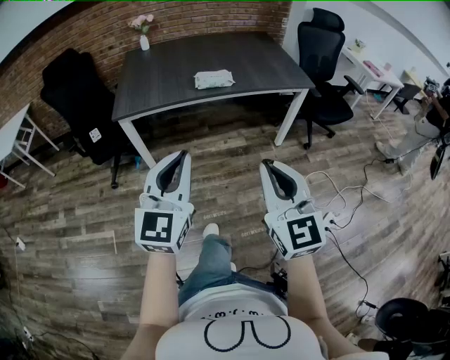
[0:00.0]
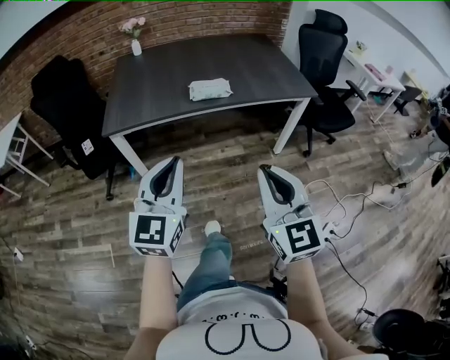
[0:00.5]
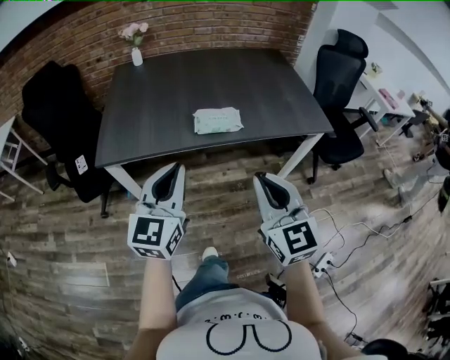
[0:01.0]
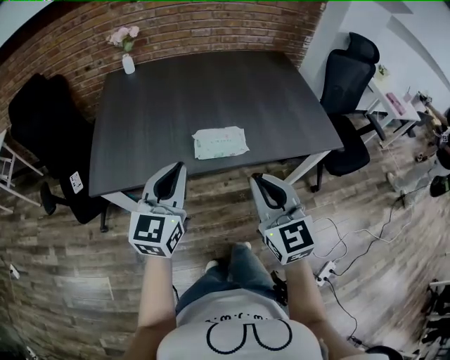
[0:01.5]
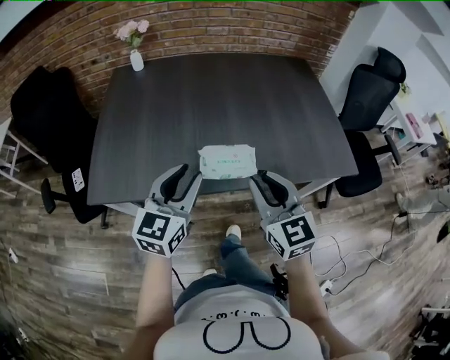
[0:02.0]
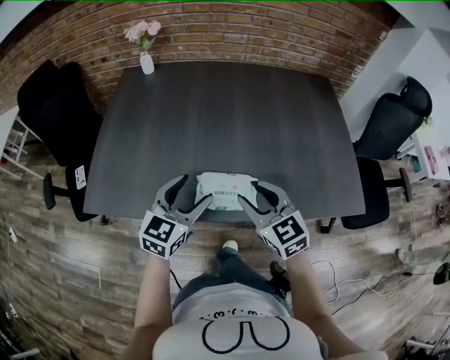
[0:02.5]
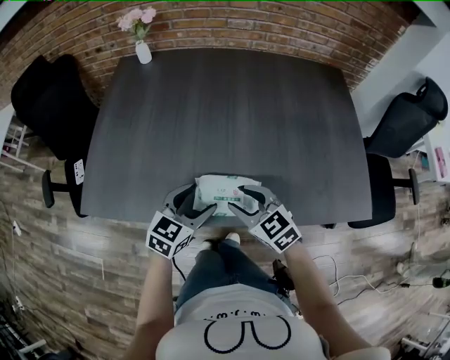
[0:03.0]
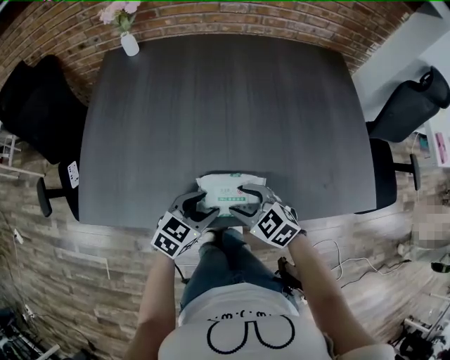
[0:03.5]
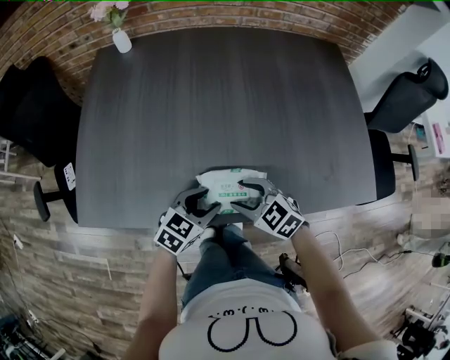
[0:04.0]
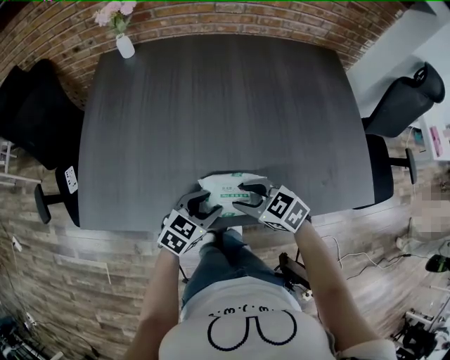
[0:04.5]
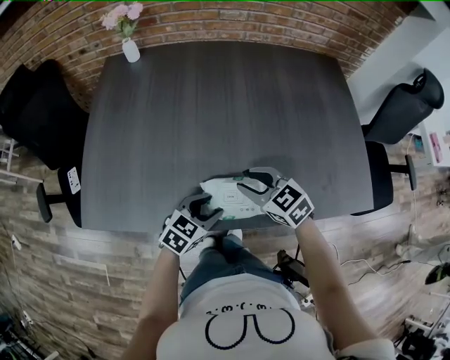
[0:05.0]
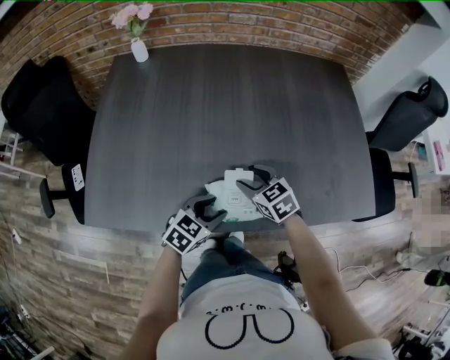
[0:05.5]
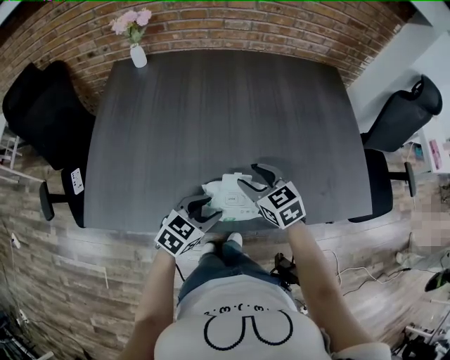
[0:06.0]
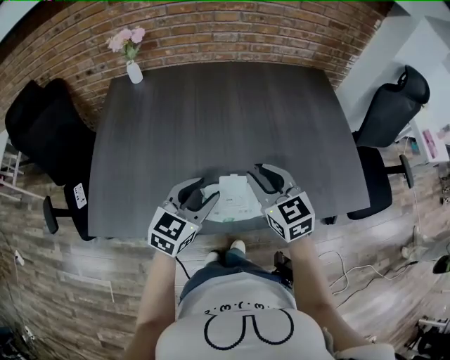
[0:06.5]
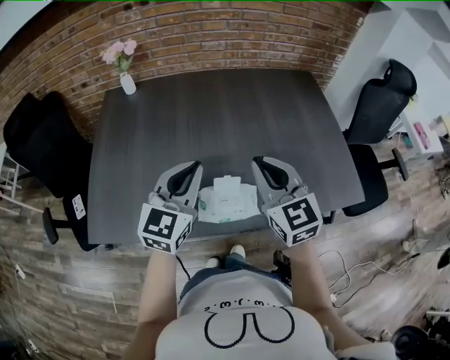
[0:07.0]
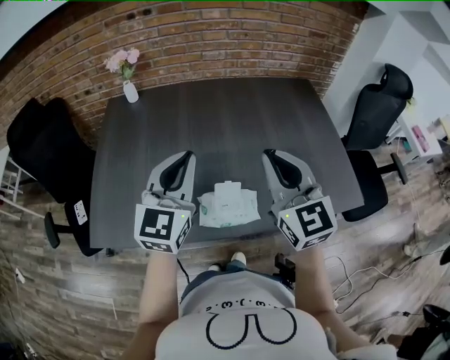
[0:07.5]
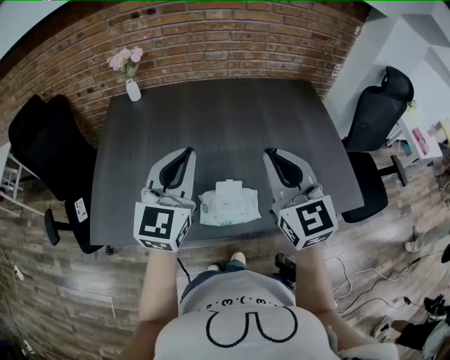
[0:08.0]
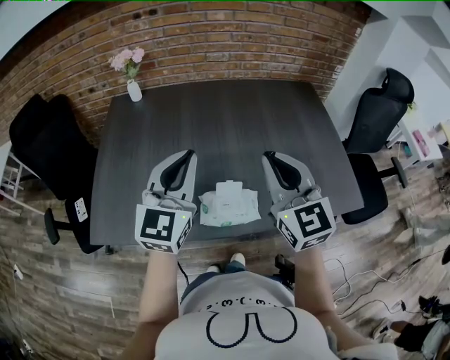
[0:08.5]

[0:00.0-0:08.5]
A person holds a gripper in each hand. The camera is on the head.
0:00.0 to 0:02.0: Both grippers are carried forward, some 60 cm. The left gripper opens.
0:02.0 to 0:04.0: Both grippers travel together downward and forward, approximately 25 cm. The right gripper angles its fingers downward, by approximately 30 degrees, and opens its fingers; the left gripper turns by roughly 40 degrees, and opens, then closes once more.
0:04.0 to 0:06.5: The left gripper goes some 15 cm upward, and changes its angle by some 20 degrees. The right gripper moves up and down over about 15 cm, changing direction 2 times, rotates approximately 40 degrees, and closes up.
0:06.5 to 0:08.5: Both grippers travel together upward, approximately 15 cm. The right gripper turns by some 20 degrees, and closes; the left gripper swivels roughly 30 degrees, and closes up.

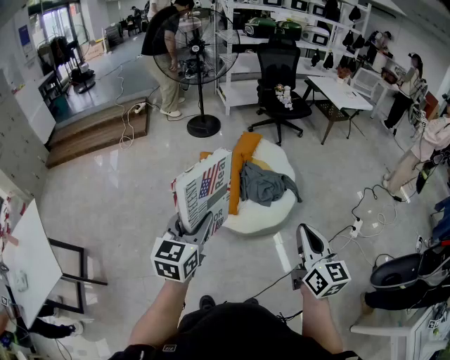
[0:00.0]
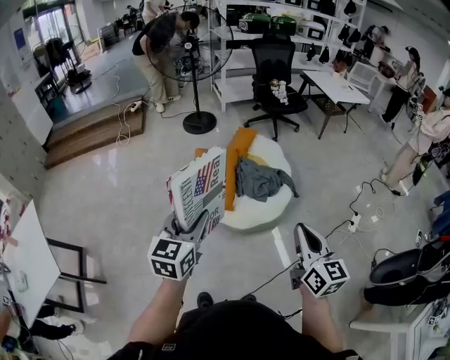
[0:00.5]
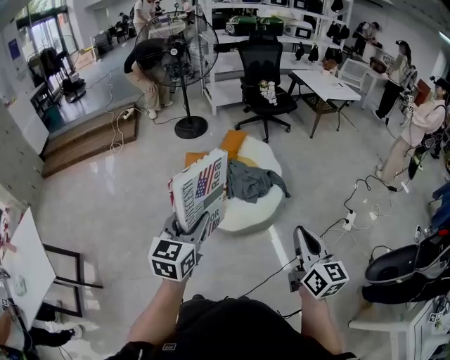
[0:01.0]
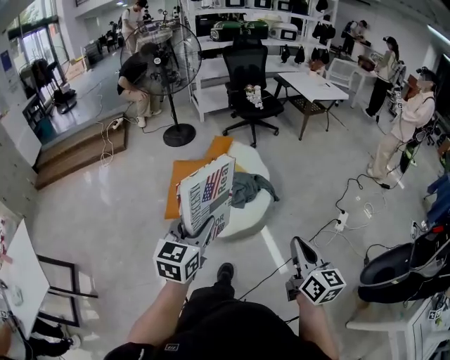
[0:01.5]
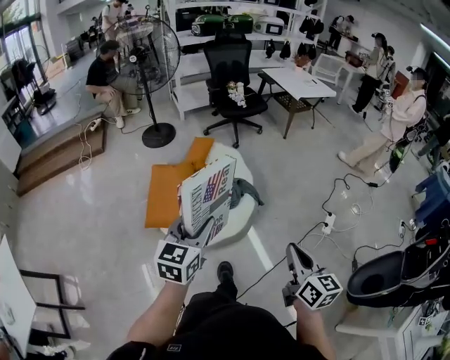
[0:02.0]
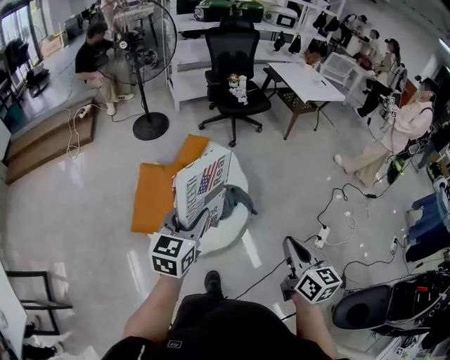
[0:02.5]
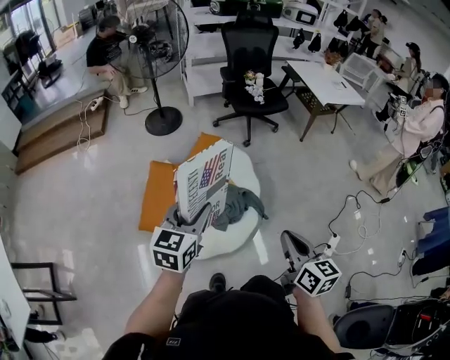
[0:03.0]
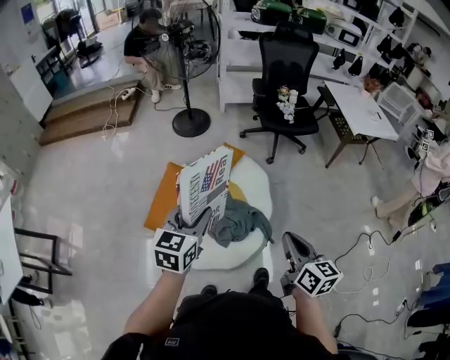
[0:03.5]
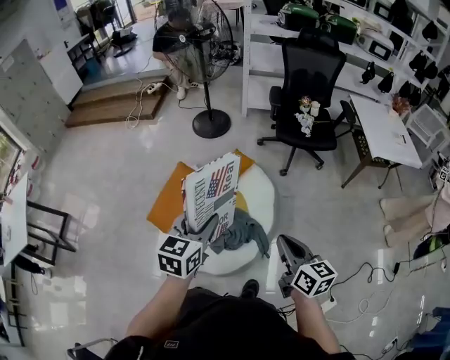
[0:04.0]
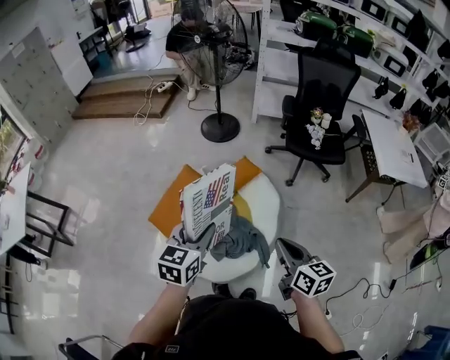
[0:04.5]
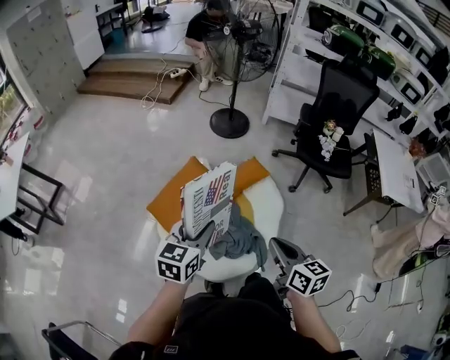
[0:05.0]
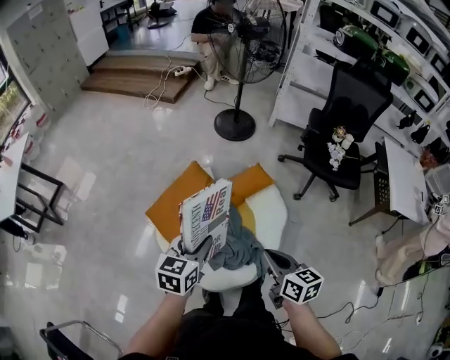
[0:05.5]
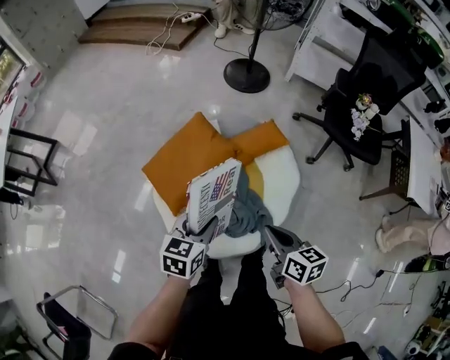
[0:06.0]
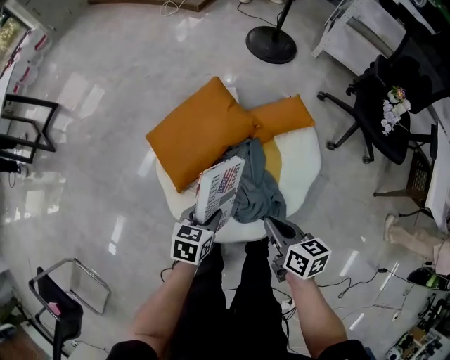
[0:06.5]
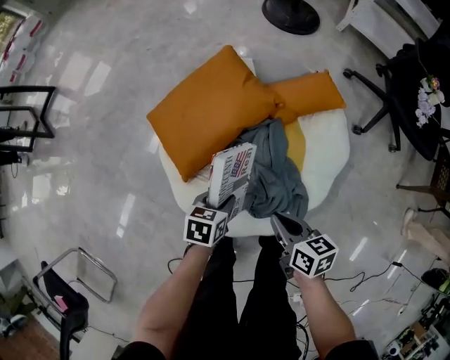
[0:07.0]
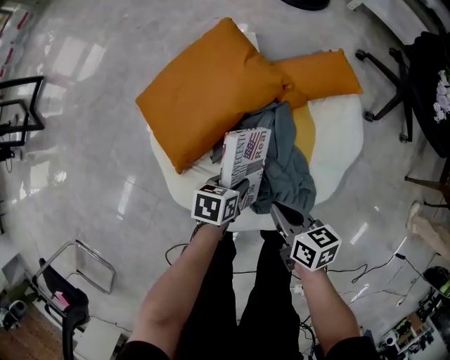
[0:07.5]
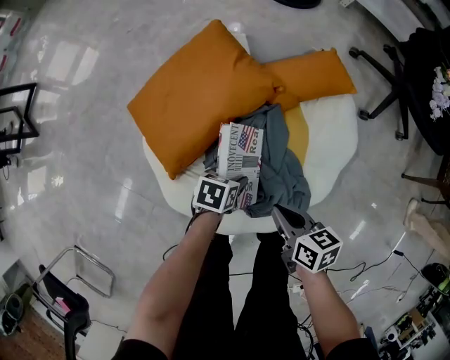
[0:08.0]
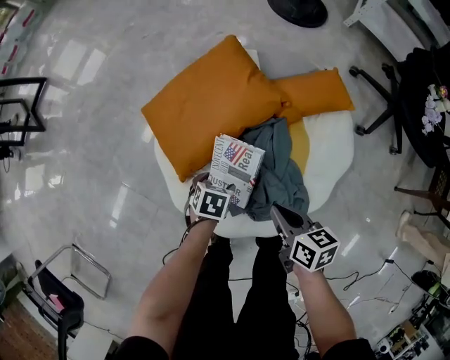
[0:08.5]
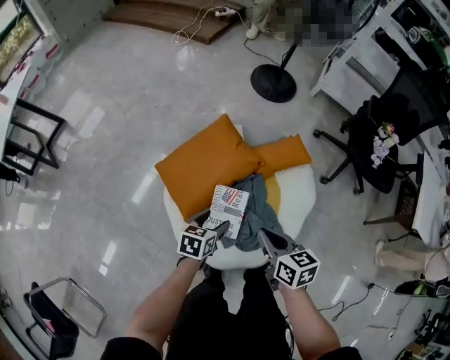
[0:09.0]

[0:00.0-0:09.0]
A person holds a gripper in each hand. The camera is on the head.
0:00.0 to 0:02.0: The left gripper travels to the right and forward by approximately 30 cm. The right gripper goes some 20 cm to the right.
0:02.0 to 0:04.5: Both grippers are carried some 50 cm. The left gripper changes its angle by approximately 40 degrees. The right gripper rotates some 50 degrees.
0:04.5 to 0:07.0: The grippers both shift downward by about 50 cm. The right gripper changes its angle by about 40 degrees. The left gripper tips its fingers downward by some 30 degrees.
0:07.0 to 0:09.0: Both grippers travel together upward, about 15 cm. The left gripper opens its fingers.

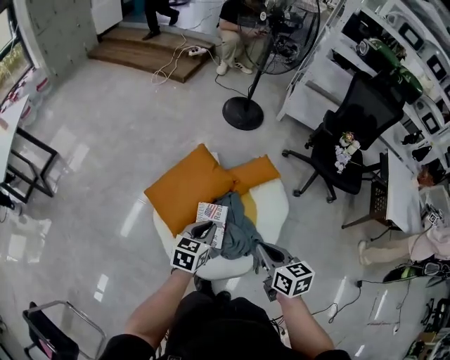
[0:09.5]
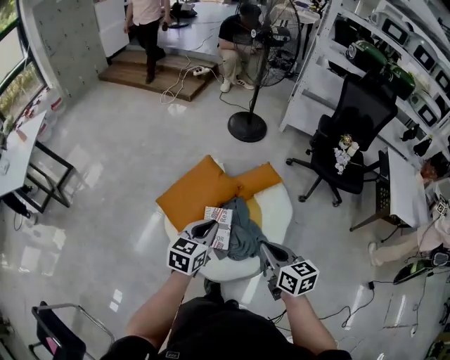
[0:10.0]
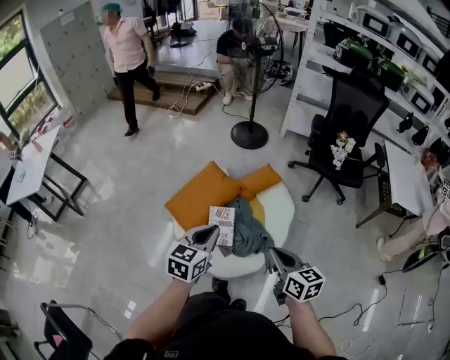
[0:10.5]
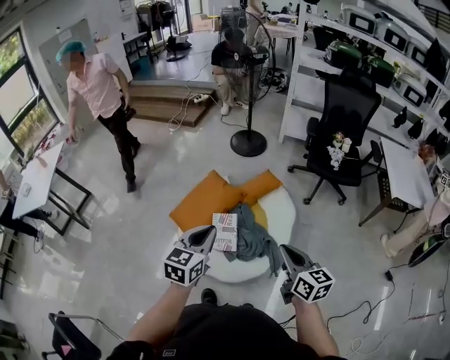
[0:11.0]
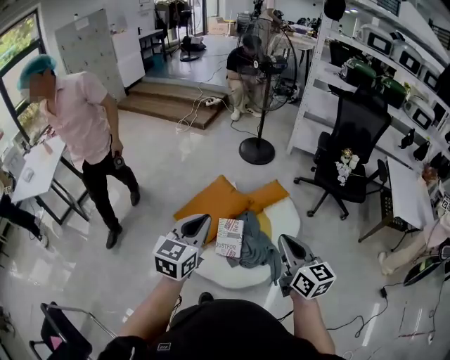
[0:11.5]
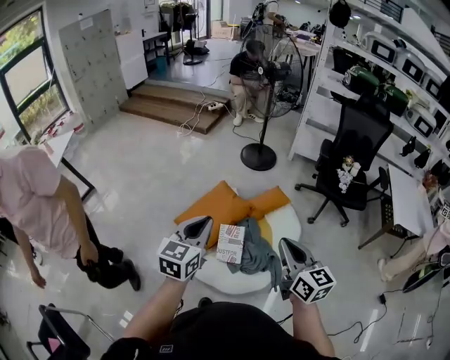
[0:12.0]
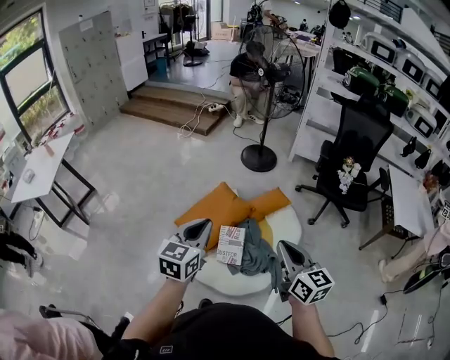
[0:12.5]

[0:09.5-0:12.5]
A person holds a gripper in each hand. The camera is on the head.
0:09.5 to 0:11.0: The left gripper goes approximately 30 cm upward and backward. The right gripper shifts about 25 cm backward, upward and to the right, and changes its angle by approximately 20 degrees.
0:11.0 to 0:12.5: The right gripper shifts roughly 15 cm to the left, upward and forward. Meanwhile the left gripper goes roughly 10 cm to the left.

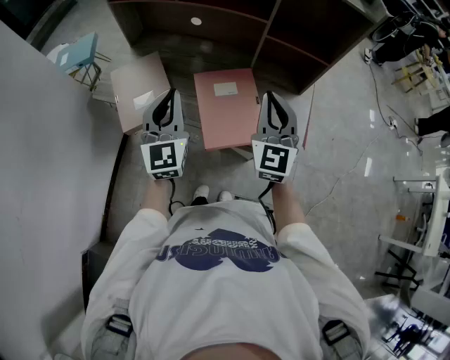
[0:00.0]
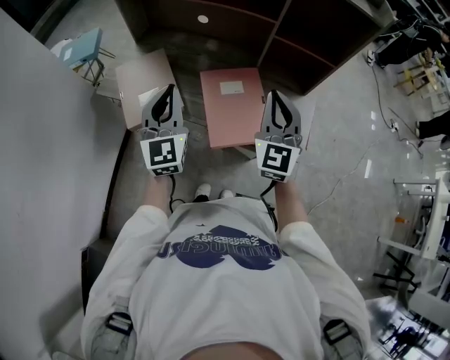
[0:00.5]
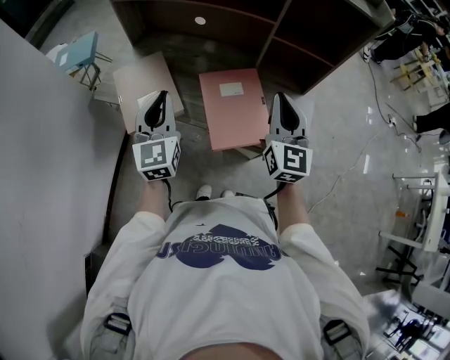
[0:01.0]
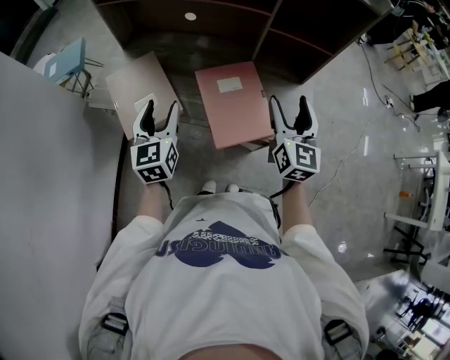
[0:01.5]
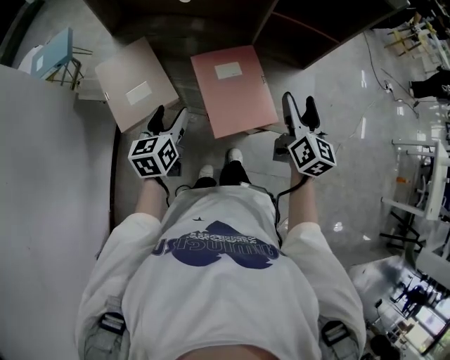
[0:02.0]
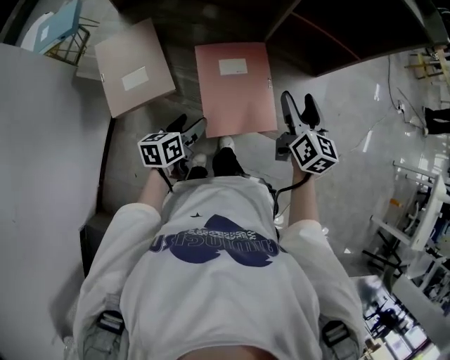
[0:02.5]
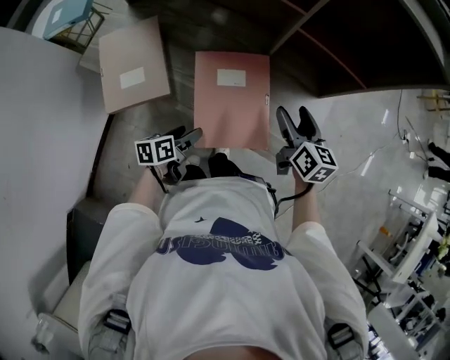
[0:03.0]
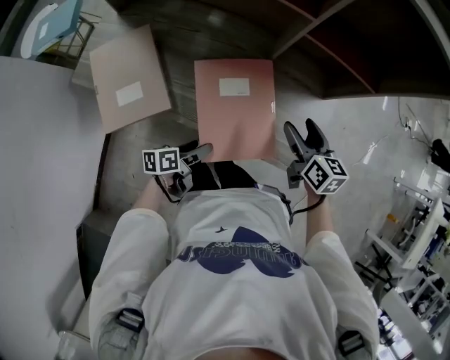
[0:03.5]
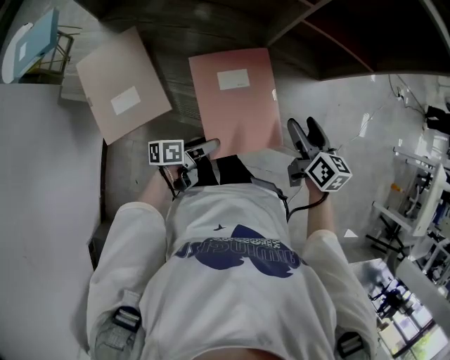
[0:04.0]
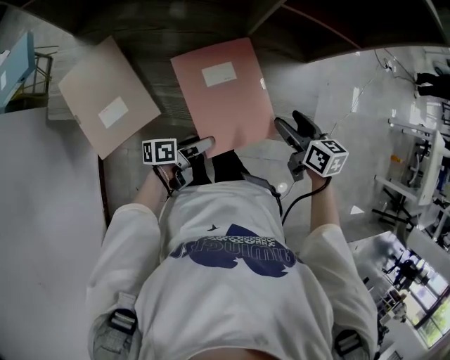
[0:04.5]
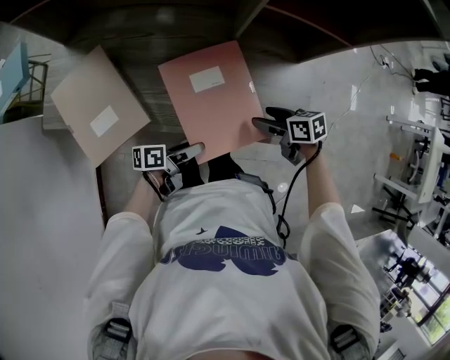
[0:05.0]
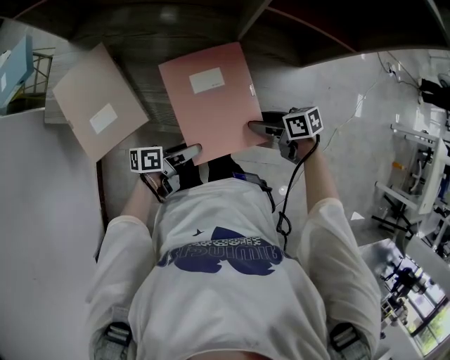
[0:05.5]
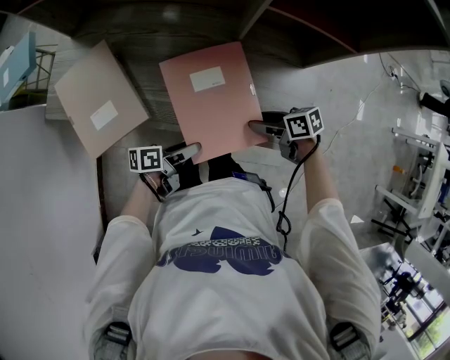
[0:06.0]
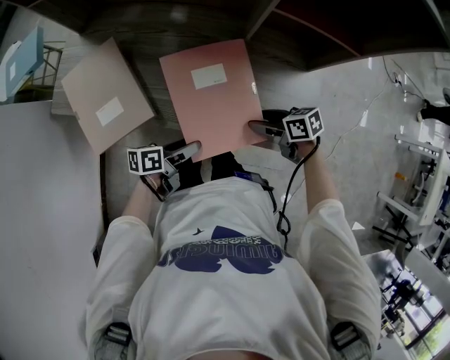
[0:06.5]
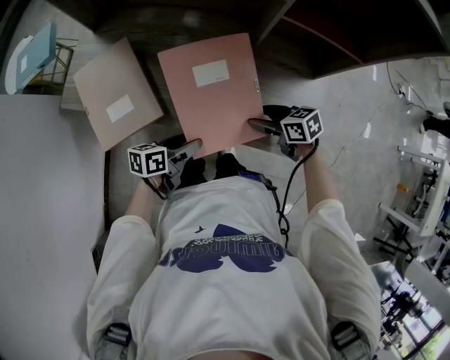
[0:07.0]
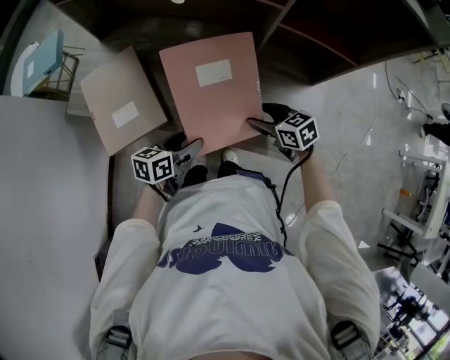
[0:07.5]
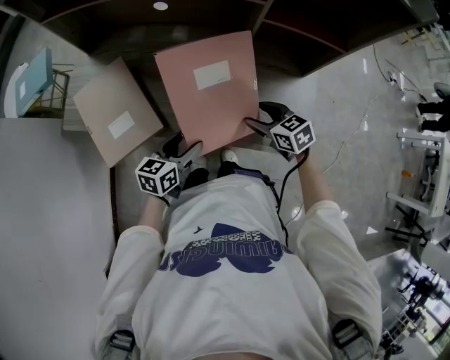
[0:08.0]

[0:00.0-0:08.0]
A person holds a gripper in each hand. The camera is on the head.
0:00.0 to 0:02.0: The left gripper travels downward by about 15 cm, changes its angle by some 40 degrees, and opens; the right gripper goes approximately 10 cm downward and to the right, swivels about 40 degrees, and opens its fingers.
0:02.0 to 0:04.0: The right gripper travels downward and forward by approximately 15 cm, and changes its angle by roughly 30 degrees, while the left gripper goes roughly 20 cm downward and to the right, and rotates approximately 60 degrees.
0:04.0 to 0:06.0: The right gripper heads downward, covering approximately 15 cm, and turns by about 50 degrees.
0:06.0 to 0:08.0: The left gripper shifts approximately 5 cm upward, and twists approximately 40 degrees clockwise, seen from behind. The right gripper moves roughly 10 cm, and rotates roughly 40 degrees.
